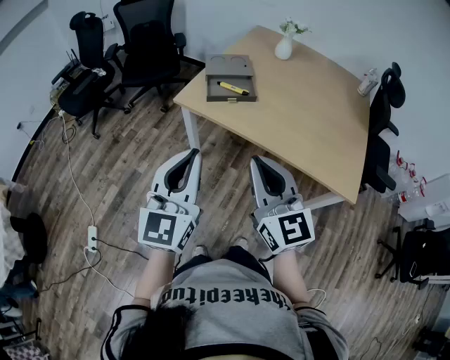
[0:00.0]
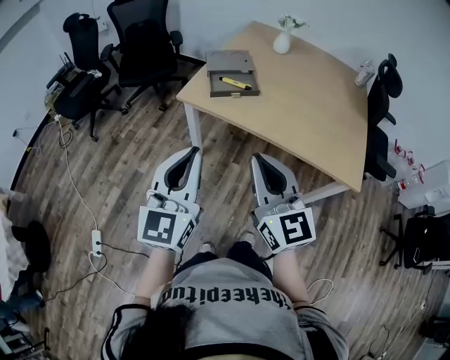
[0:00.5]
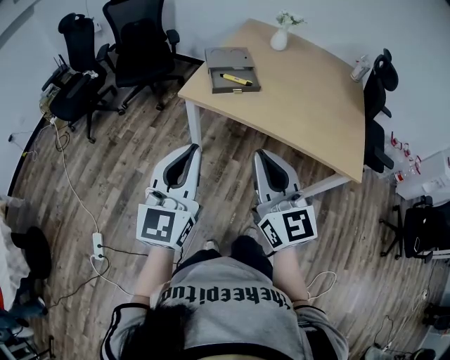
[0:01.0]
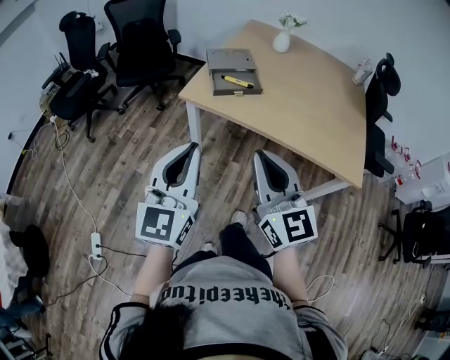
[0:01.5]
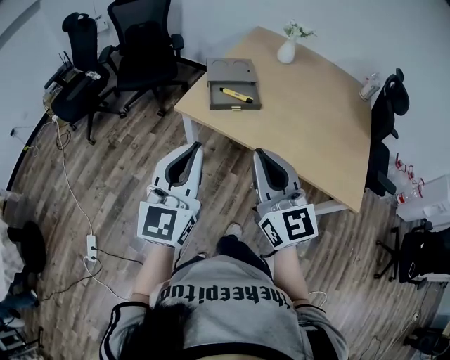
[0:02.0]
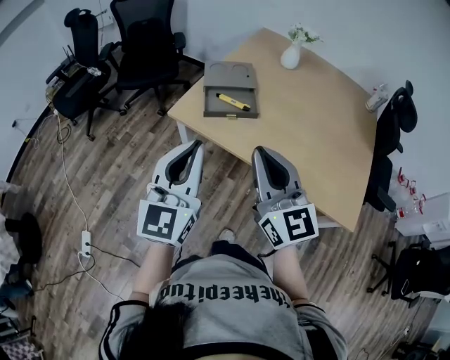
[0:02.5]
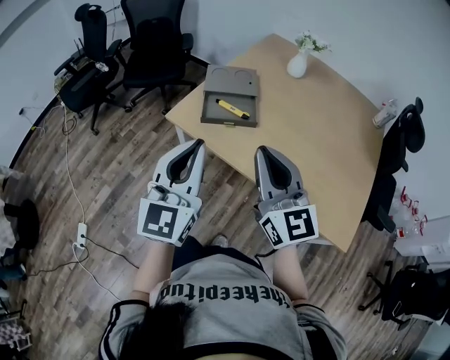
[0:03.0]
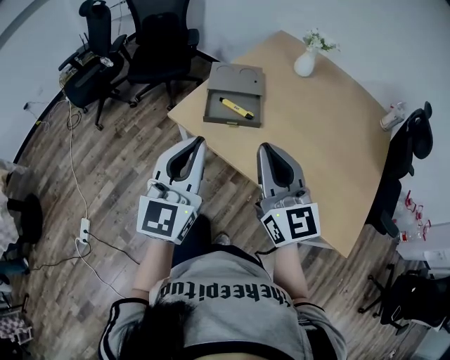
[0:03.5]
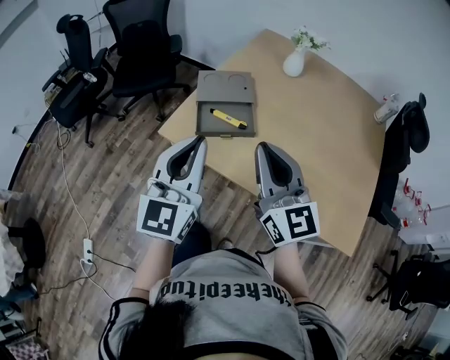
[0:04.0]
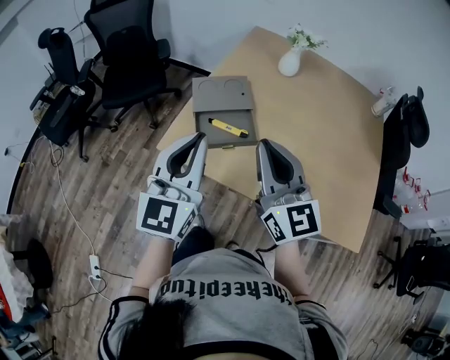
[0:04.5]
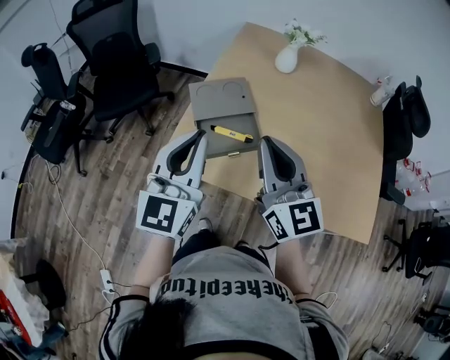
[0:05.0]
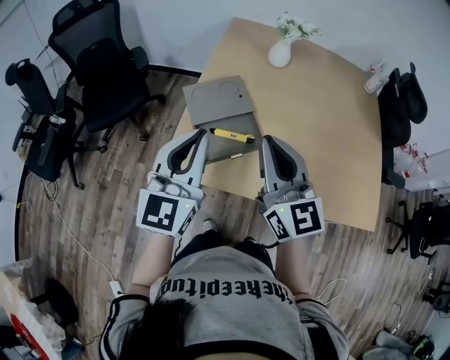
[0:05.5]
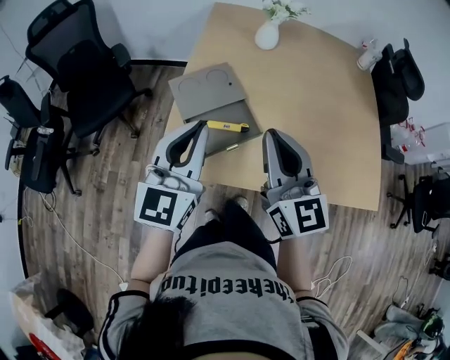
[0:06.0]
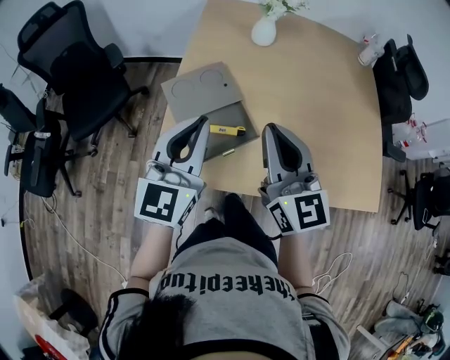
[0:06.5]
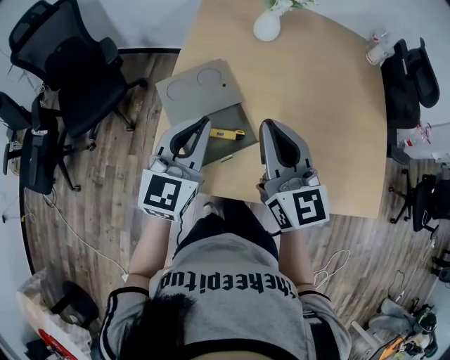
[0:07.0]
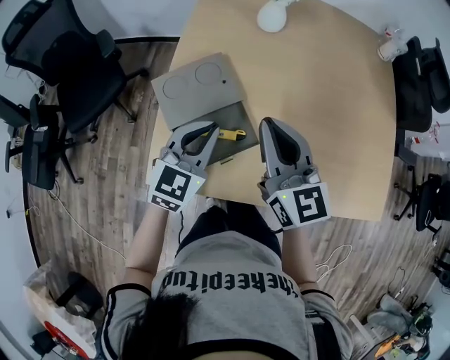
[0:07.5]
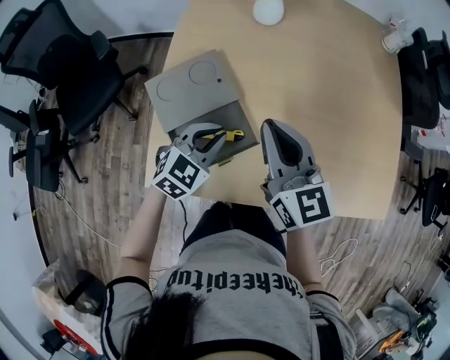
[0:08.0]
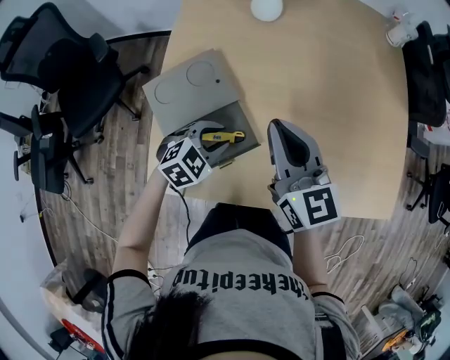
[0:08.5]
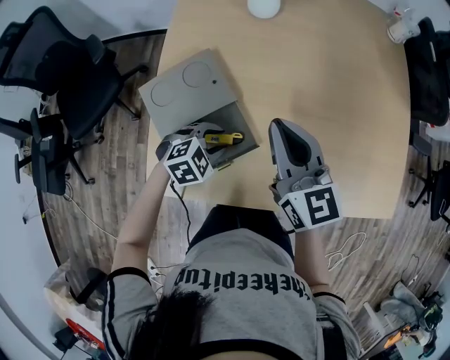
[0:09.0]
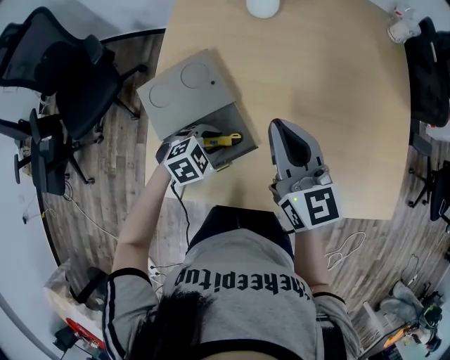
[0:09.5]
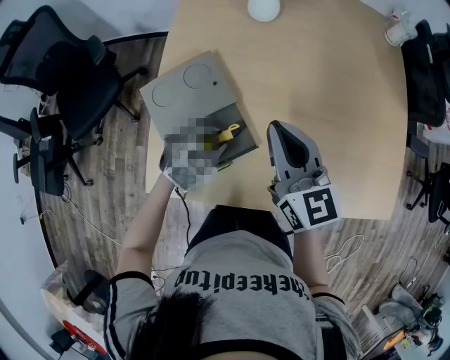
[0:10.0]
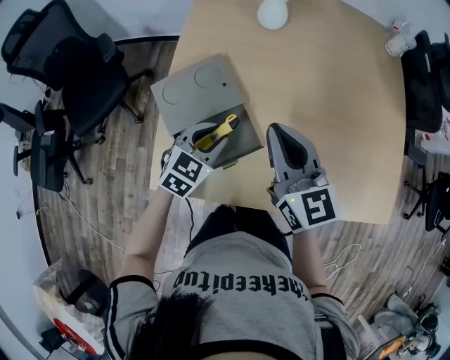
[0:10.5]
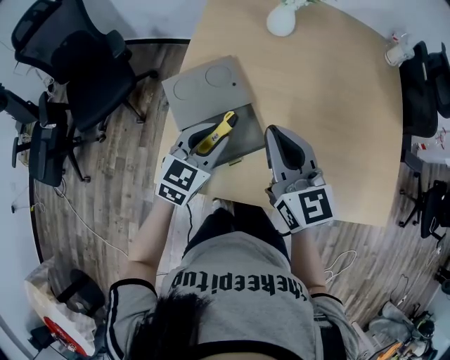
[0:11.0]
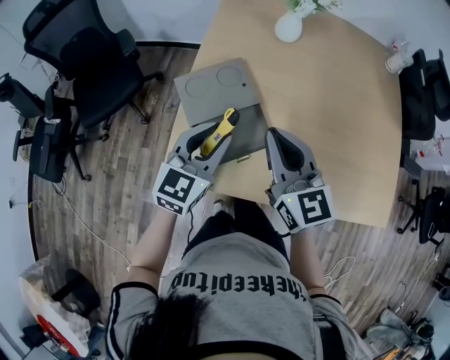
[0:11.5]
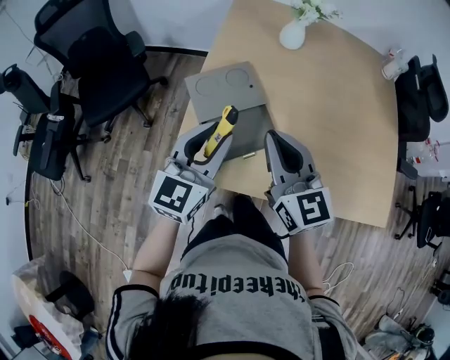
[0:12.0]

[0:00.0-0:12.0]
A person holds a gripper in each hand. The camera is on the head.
0:00.0 to 0:02.0: The two grippers go roughly 5 cm forward.
0:02.0 to 0:04.0: The grippers both shift forward and to the right by some 20 cm.
0:04.0 to 0:06.0: The left gripper is displaced forward by approximately 20 cm, and changes its angle by approximately 20 degrees. The right gripper heads forward and to the left, covering some 15 cm, and changes its angle by approximately 20 degrees.
0:06.0 to 0:08.0: The left gripper travels downward, forward and to the right by roughly 25 cm, and tips its fingers downward by some 40 degrees. Meanwhile the right gripper is displaced forward and downward by roughly 15 cm.
0:08.0 to 0:10.0: The left gripper goes roughly 10 cm downward, and opens up.
0:10.0 to 0:12.0: The right gripper is displaced backward, to the left and upward by about 15 cm. The left gripper moves upward, roughly 25 cm, and angles its fingers upward, by approximately 50 degrees.

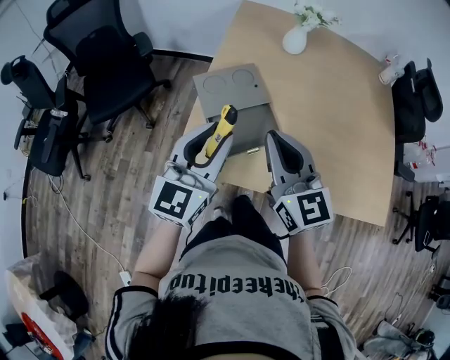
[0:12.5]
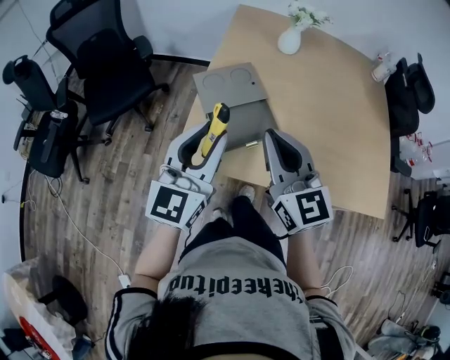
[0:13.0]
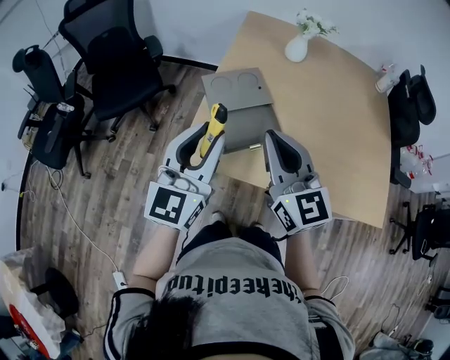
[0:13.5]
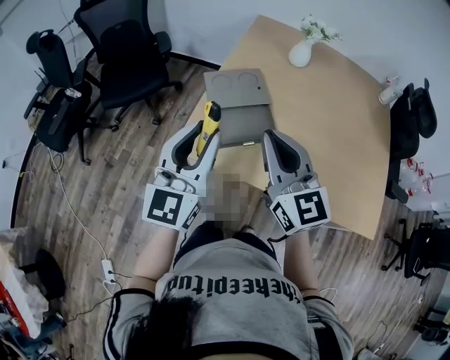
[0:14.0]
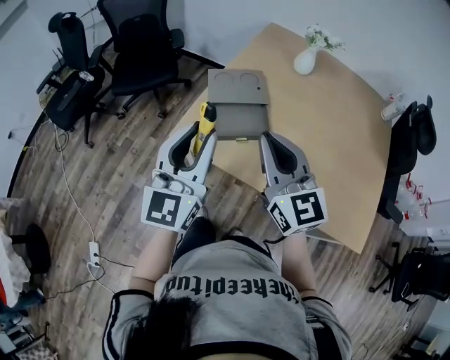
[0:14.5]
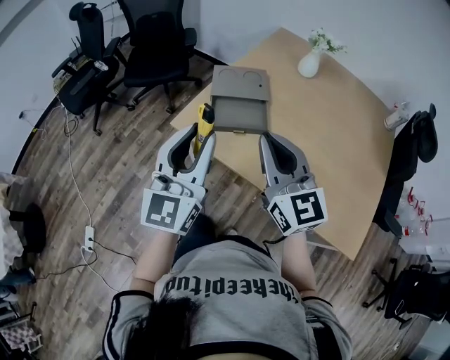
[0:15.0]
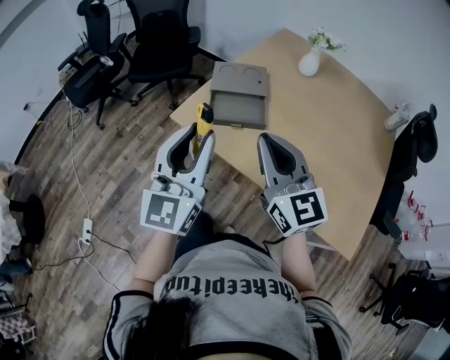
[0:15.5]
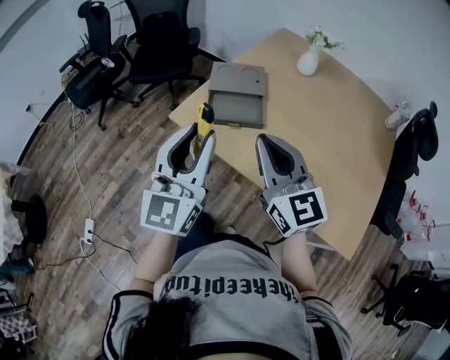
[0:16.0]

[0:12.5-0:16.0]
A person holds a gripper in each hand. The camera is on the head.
0:12.5 to 0:14.5: The right gripper goes some 10 cm backward, while the left gripper is displaced backward and upward by some 15 cm, and changes its angle by approximately 30 degrees.
0:14.5 to 0:16.0: The two grippers go roughly 10 cm backward.

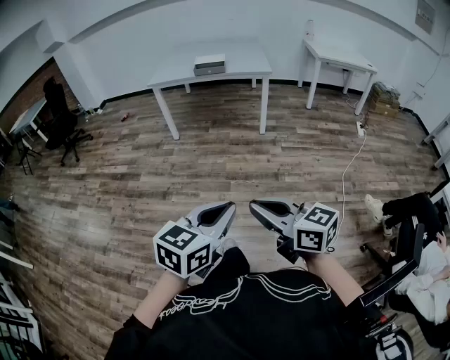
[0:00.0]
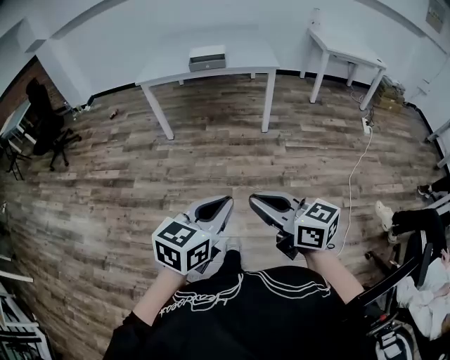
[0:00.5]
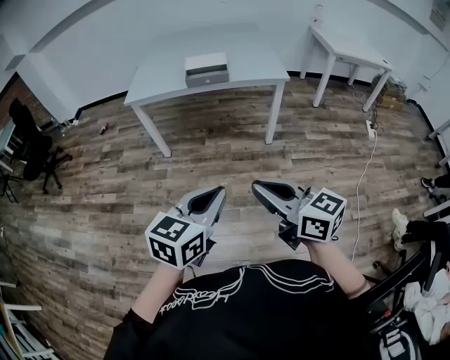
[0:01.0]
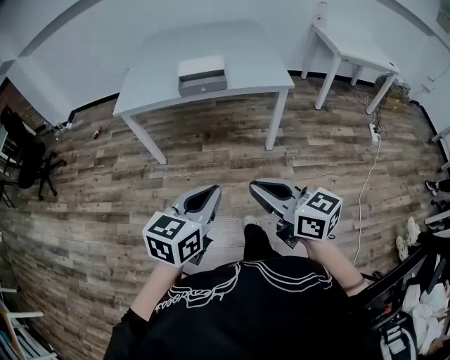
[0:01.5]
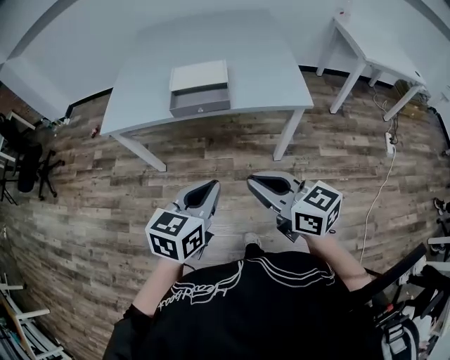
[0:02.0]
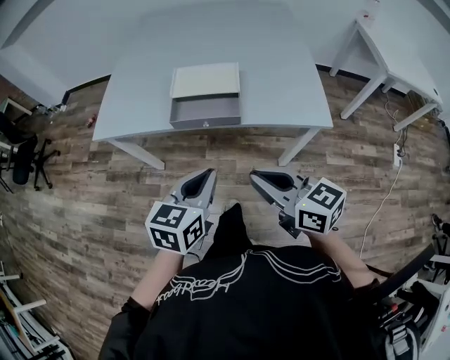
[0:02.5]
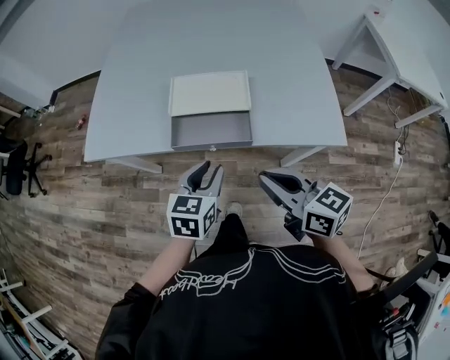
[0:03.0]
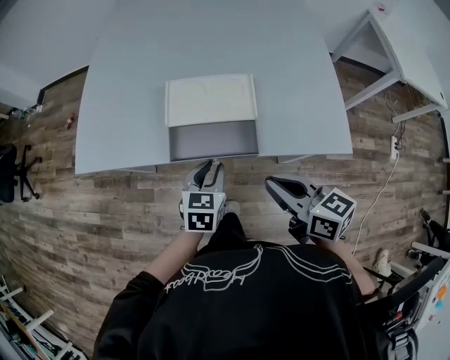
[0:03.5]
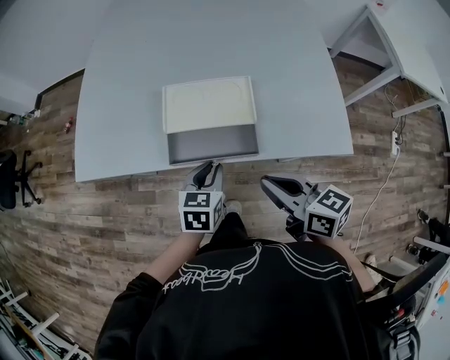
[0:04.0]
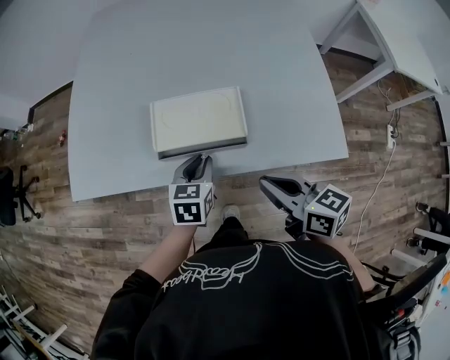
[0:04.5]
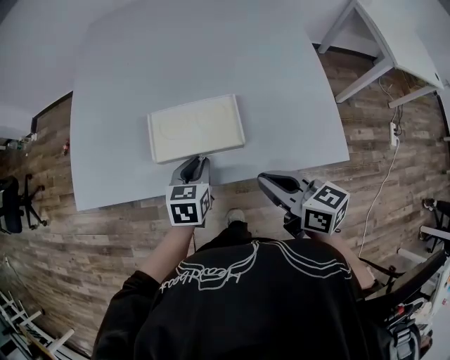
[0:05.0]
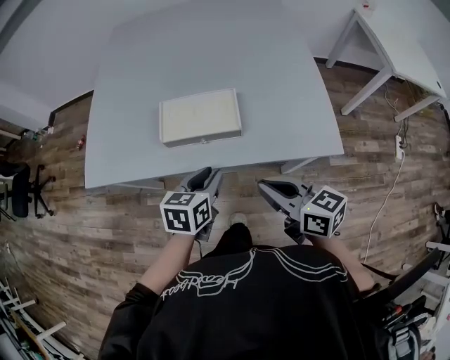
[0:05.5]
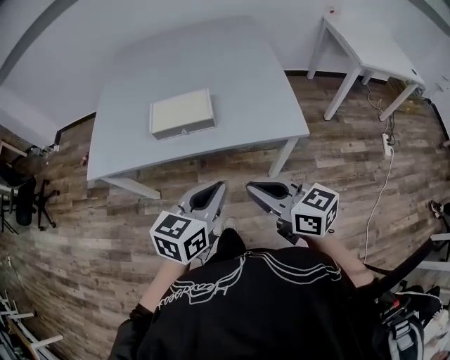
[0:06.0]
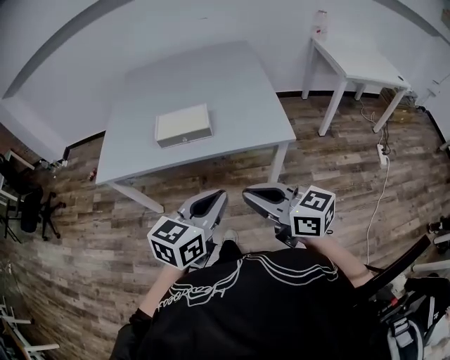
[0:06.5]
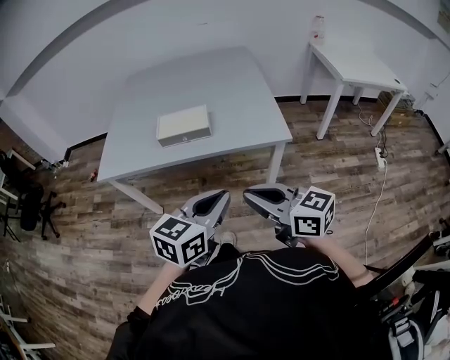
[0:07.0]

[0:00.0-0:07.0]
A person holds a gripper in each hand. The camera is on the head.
0:00.0 to 0:02.0: The two grippers travel together, forward, roughly 80 cm.
0:02.0 to 0:03.5: The left gripper is displaced forward and downward by some 40 cm, and opens; the right gripper shifts approximately 30 cm forward.
0:03.5 to 0:05.0: Both grippers travel together forward, approximately 5 cm.
0:05.0 to 0:07.0: Both grippers move backward and upward, roughly 40 cm. The right gripper turns by approximately 20 degrees; the left gripper swivels roughly 30 degrees.

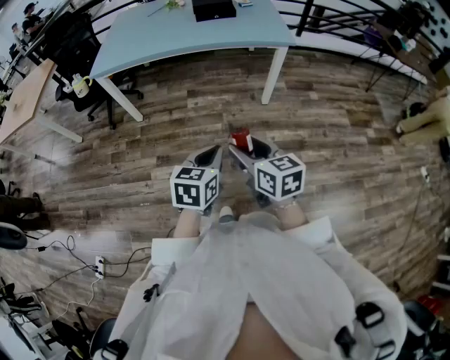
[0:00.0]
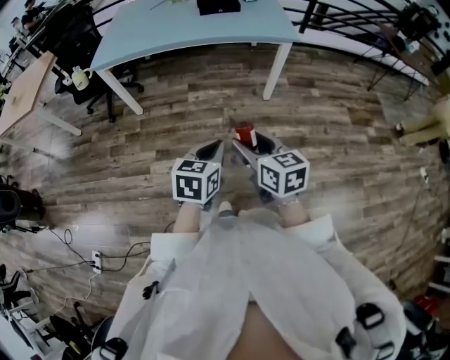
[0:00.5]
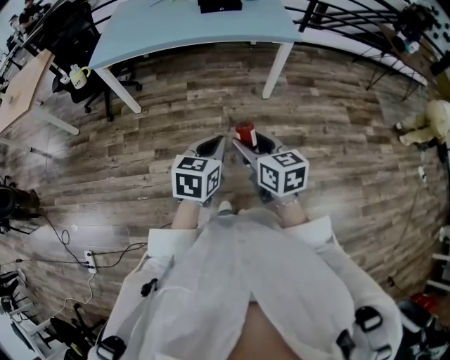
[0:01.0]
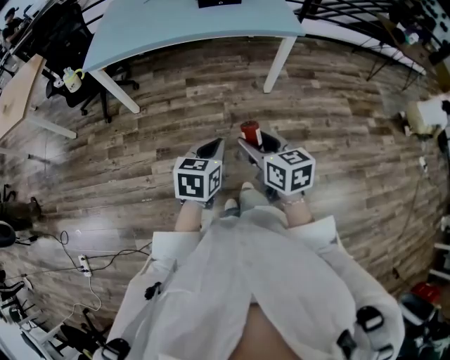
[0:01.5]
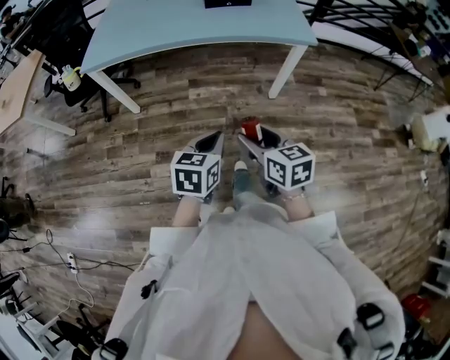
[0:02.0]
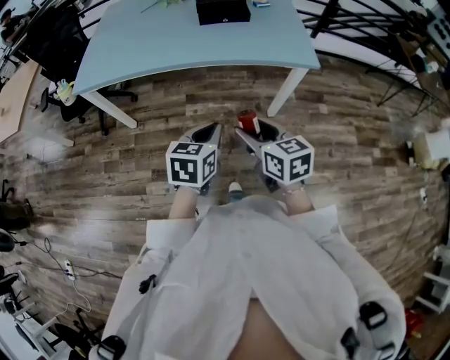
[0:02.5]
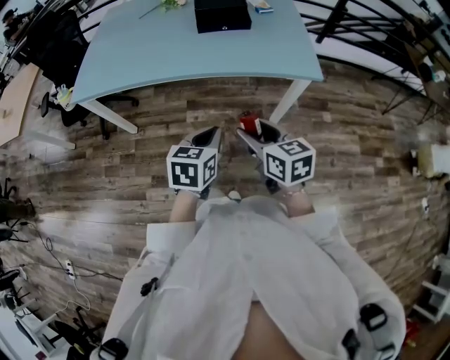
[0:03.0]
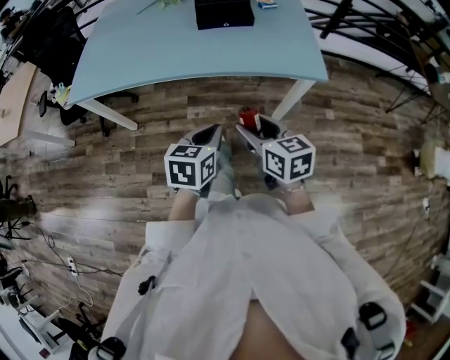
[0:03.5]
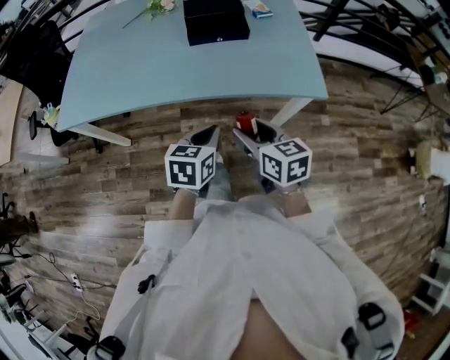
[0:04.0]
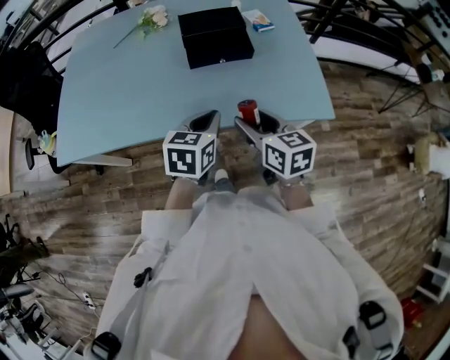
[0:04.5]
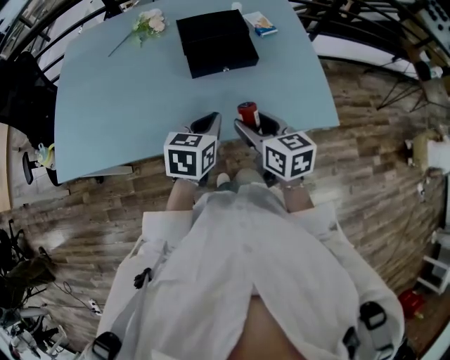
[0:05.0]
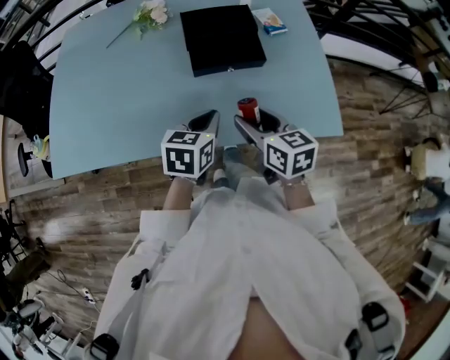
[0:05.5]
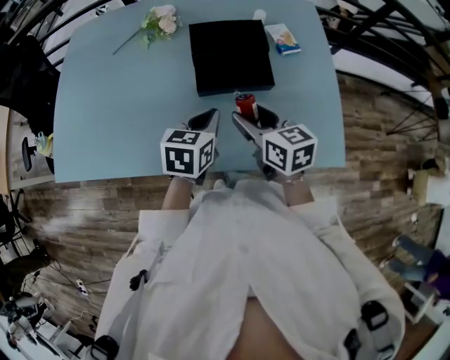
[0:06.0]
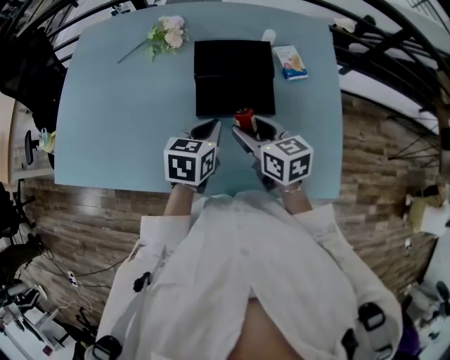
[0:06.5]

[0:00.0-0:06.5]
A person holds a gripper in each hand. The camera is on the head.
0:00.0 to 0:02.0: The two grippers go approximately 15 cm forward.
0:02.0 to 0:04.5: The two grippers travel together, forward, approximately 50 cm.
0:04.5 to 0:06.5: The two grippers go about 25 cm forward.
